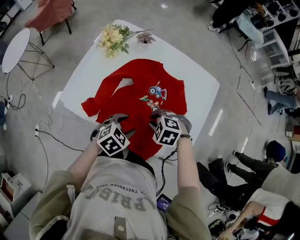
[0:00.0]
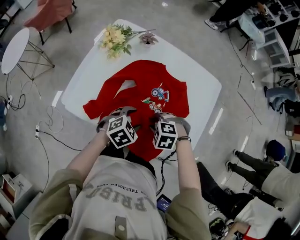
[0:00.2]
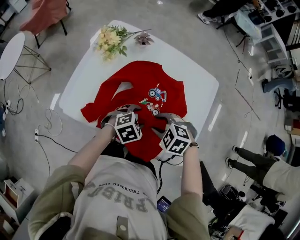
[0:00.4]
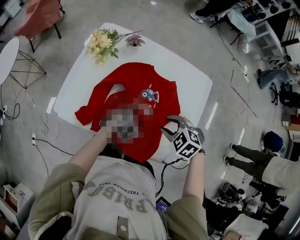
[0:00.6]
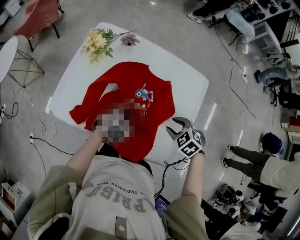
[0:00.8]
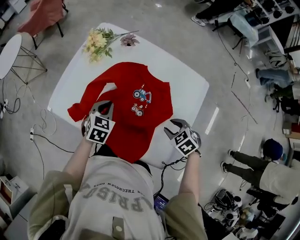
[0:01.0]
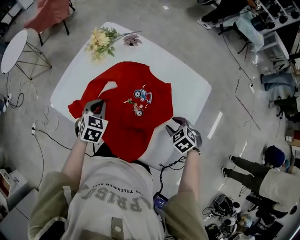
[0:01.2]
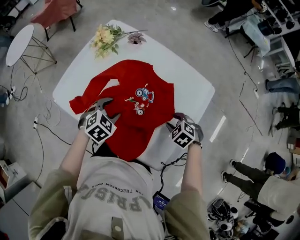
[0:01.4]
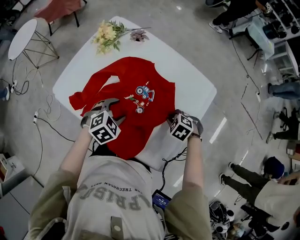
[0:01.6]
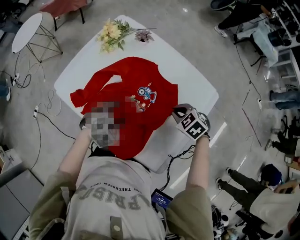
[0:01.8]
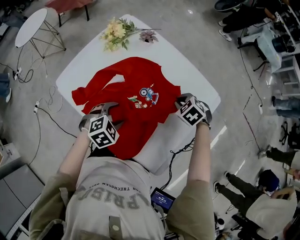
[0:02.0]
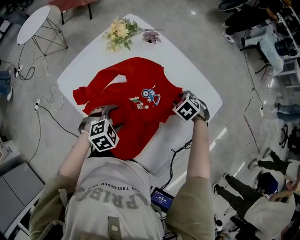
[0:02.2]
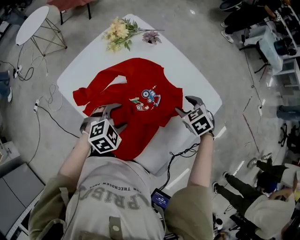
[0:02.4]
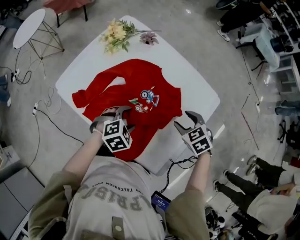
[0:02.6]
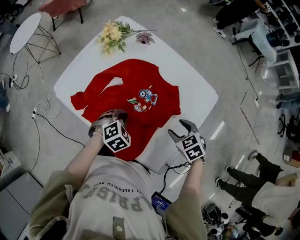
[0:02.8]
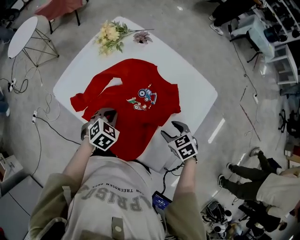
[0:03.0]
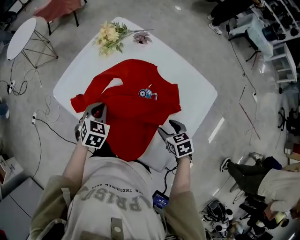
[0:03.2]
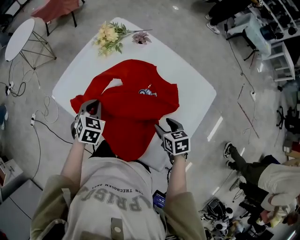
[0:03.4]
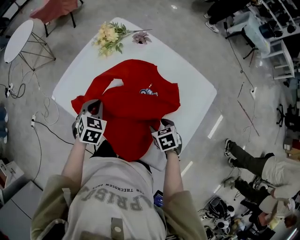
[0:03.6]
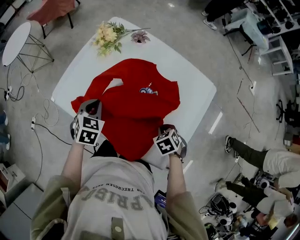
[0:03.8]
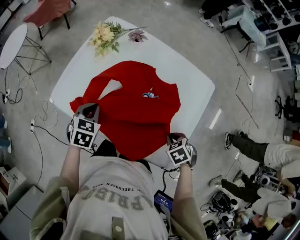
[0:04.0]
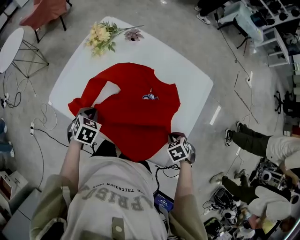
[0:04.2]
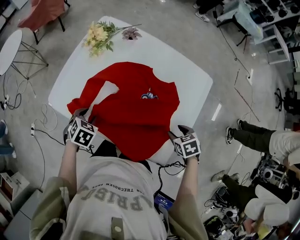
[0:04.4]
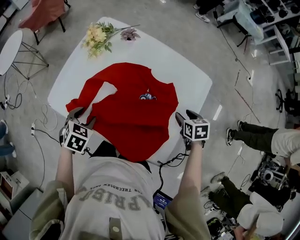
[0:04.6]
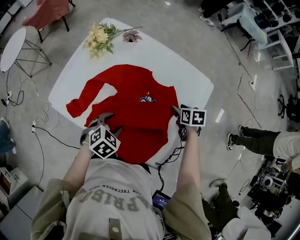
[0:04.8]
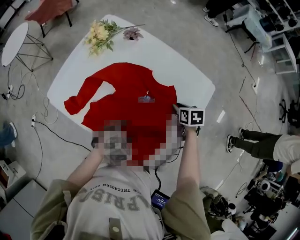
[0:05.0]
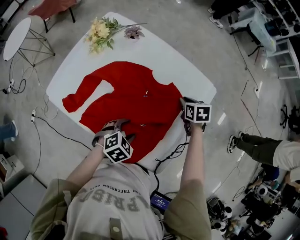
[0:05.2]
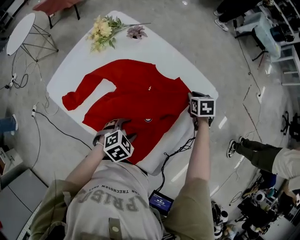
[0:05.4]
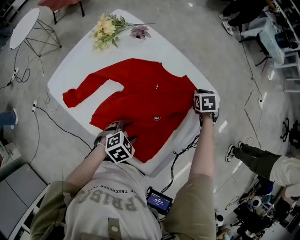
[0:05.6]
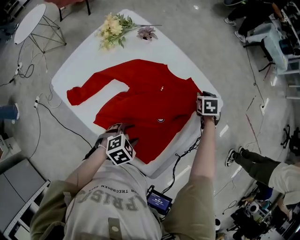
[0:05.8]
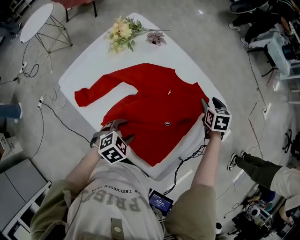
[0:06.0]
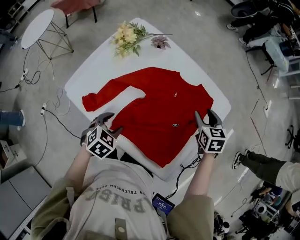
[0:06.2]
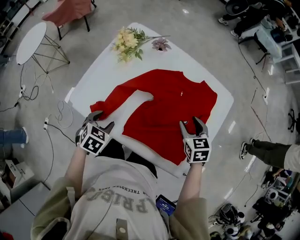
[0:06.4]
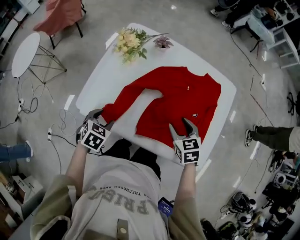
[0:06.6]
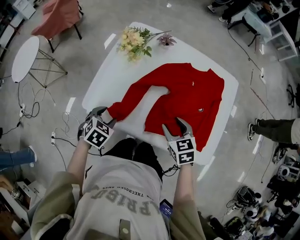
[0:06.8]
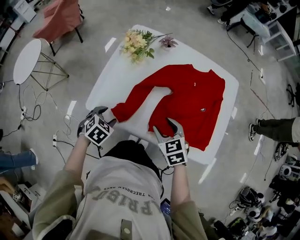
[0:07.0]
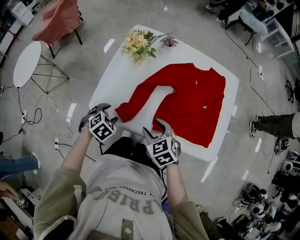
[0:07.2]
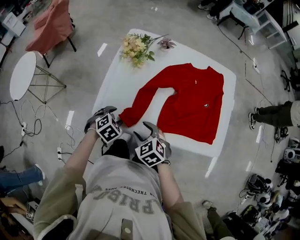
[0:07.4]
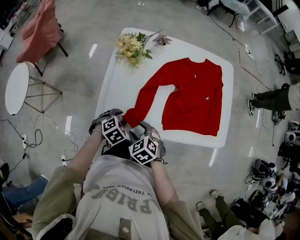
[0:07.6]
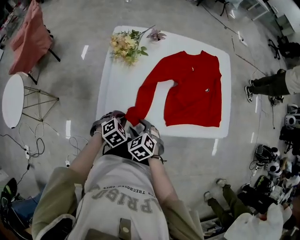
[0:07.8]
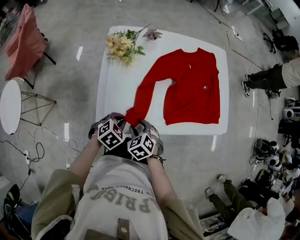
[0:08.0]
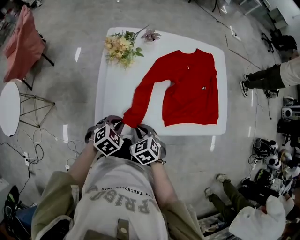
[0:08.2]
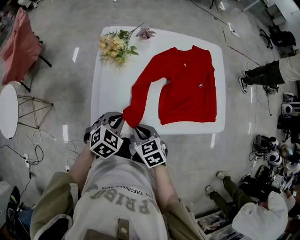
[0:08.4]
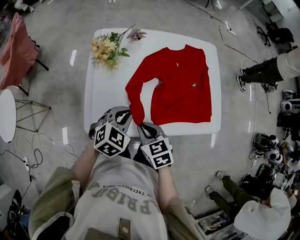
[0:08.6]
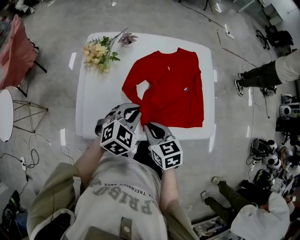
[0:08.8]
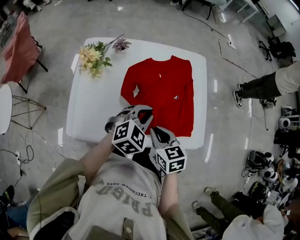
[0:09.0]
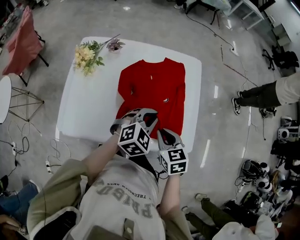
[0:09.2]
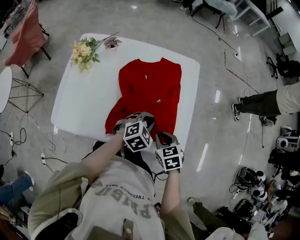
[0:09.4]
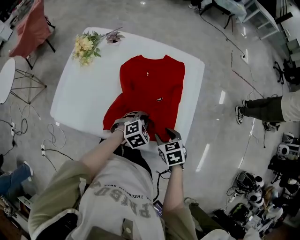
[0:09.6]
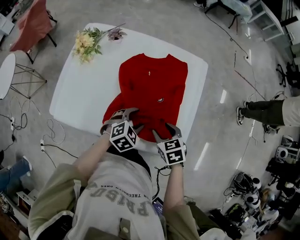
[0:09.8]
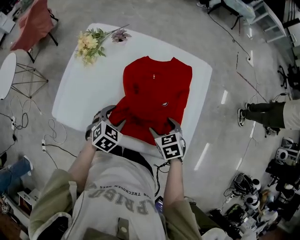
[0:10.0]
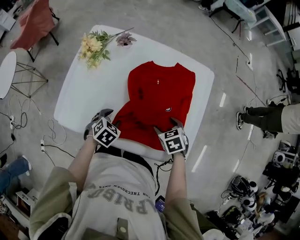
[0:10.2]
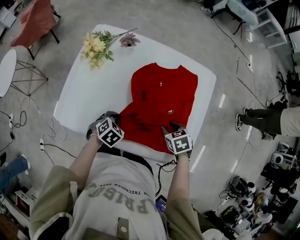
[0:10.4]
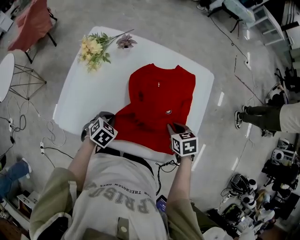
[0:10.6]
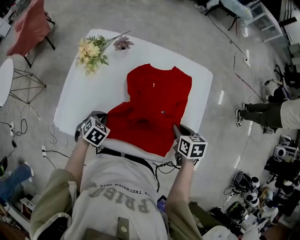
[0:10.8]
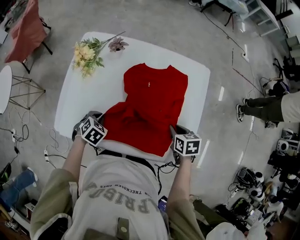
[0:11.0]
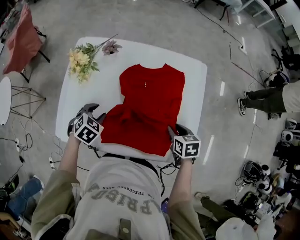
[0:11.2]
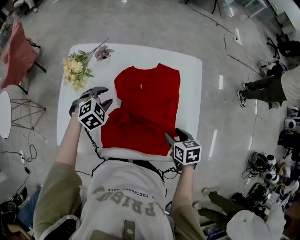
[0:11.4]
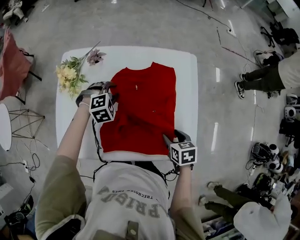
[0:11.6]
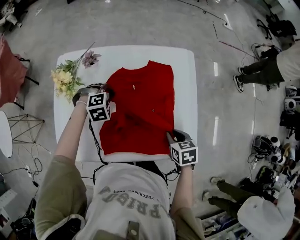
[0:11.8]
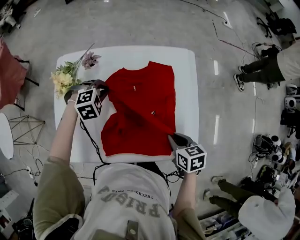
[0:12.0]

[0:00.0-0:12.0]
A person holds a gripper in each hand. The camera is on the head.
0:00.0 to 0:01.6: The right gripper ends up approximately 20 cm from where it was. The left gripper closes, then opens again.
0:01.6 to 0:03.0: The right gripper goes up and down, roughly 10 cm each way, reversing 3 times, rotates about 30 degrees, and opens up, while the left gripper closes up.
0:03.0 to 0:04.4: The right gripper ends up about 5 cm from where it was, turns by about 20 degrees, and closes, then reopens. Meanwhile the left gripper changes place by roughly 10 cm, and opens up.
0:04.4 to 0:06.0: The right gripper changes place by about 30 cm, rotates roughly 20 degrees, and closes, then reopens; the left gripper ends up about 20 cm from where it was.
0:06.0 to 0:07.6: The left gripper moves to the left, approximately 35 cm, and swivels approximately 40 degrees. The right gripper travels to the left and backward by some 60 cm.
0:07.6 to 0:09.0: The right gripper shifts roughly 25 cm to the right and upward, changes its angle by some 40 degrees, and closes. The left gripper shifts about 35 cm to the right, upward and forward, angles its fingers upward, by approximately 30 degrees, and closes its fingers.
0:09.0 to 0:10.4: The left gripper shifts some 20 cm downward and to the left, points its fingers roughly 30 degrees further downward, and opens, then closes again; the right gripper shifts roughly 20 cm to the right, downward and forward, rotates some 40 degrees, and opens.
0:10.4 to 0:12.0: The right gripper travels upward by roughly 5 cm, and rotates some 40 degrees. The left gripper goes roughly 20 cm forward, rolls clockwise, seen from behind, by about 50 degrees, and opens, then closes again.

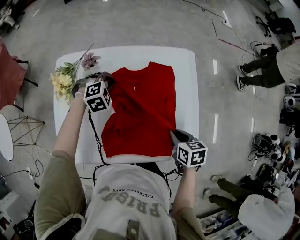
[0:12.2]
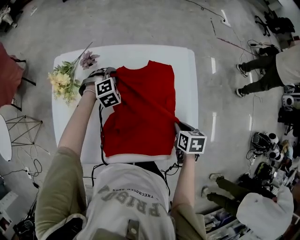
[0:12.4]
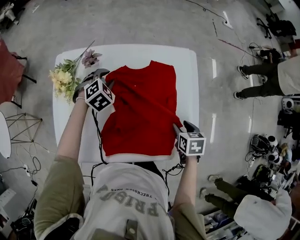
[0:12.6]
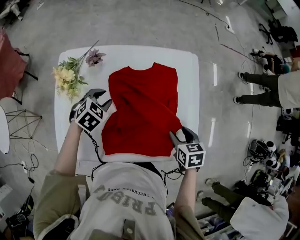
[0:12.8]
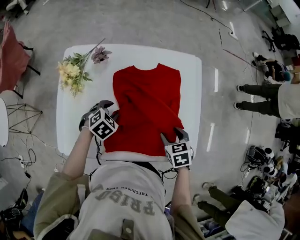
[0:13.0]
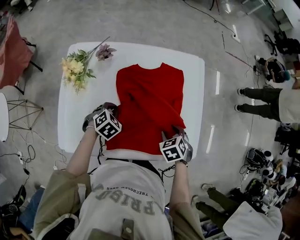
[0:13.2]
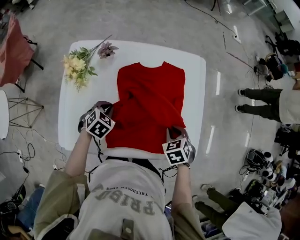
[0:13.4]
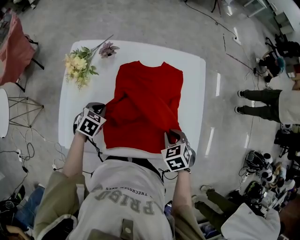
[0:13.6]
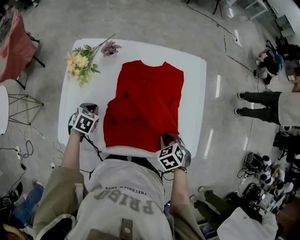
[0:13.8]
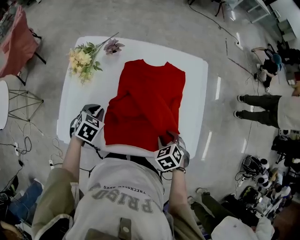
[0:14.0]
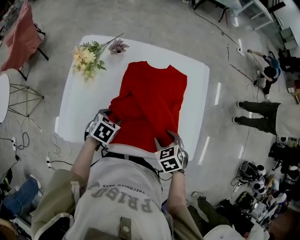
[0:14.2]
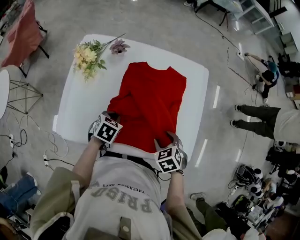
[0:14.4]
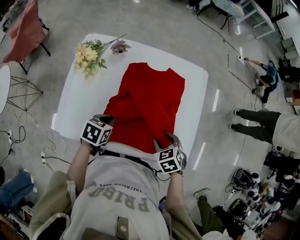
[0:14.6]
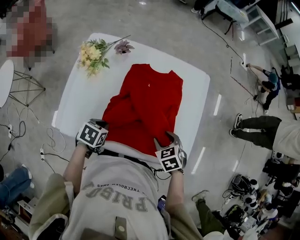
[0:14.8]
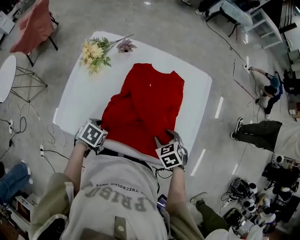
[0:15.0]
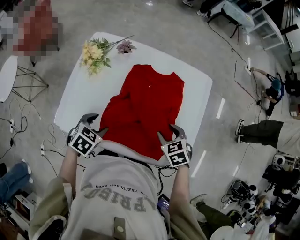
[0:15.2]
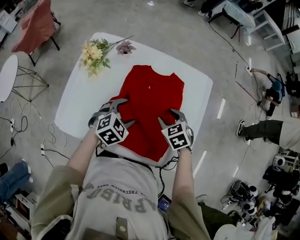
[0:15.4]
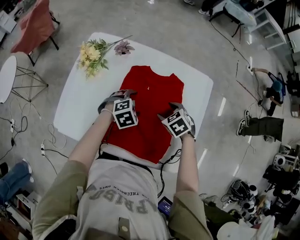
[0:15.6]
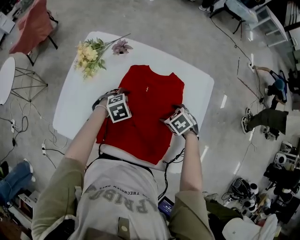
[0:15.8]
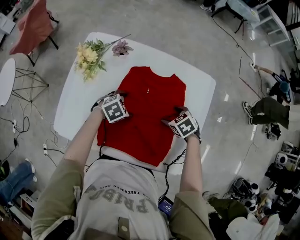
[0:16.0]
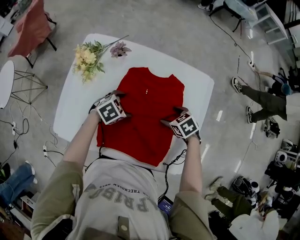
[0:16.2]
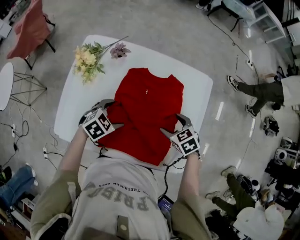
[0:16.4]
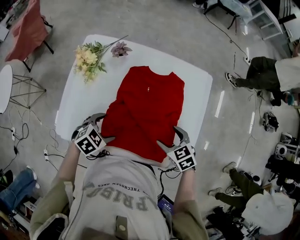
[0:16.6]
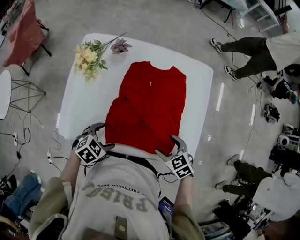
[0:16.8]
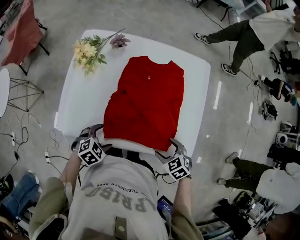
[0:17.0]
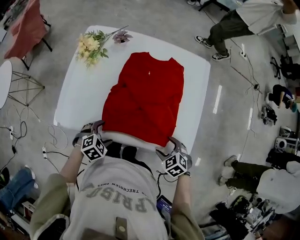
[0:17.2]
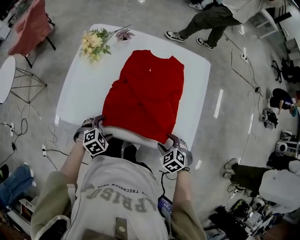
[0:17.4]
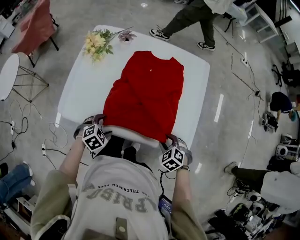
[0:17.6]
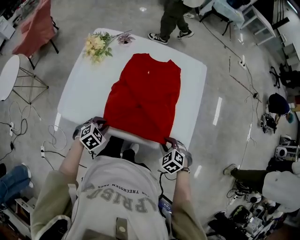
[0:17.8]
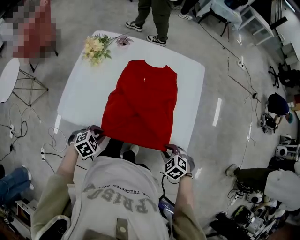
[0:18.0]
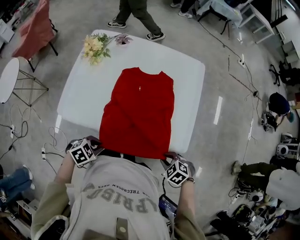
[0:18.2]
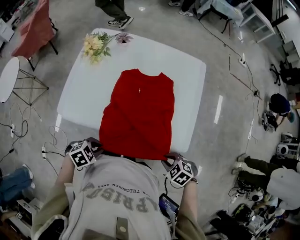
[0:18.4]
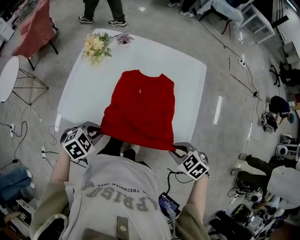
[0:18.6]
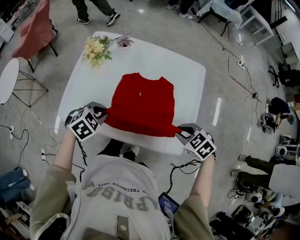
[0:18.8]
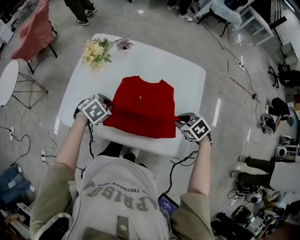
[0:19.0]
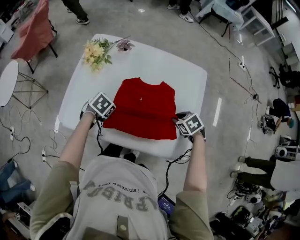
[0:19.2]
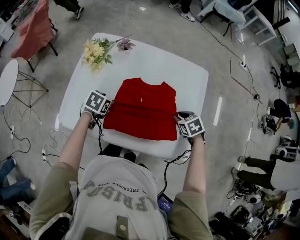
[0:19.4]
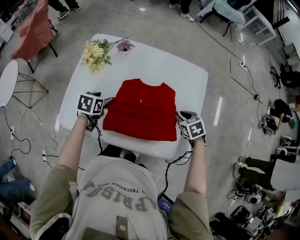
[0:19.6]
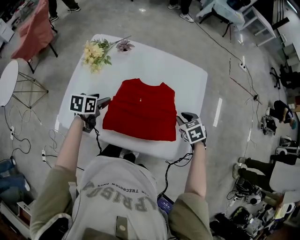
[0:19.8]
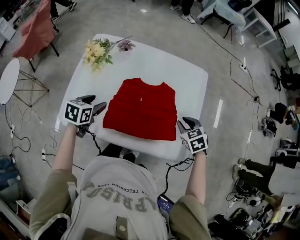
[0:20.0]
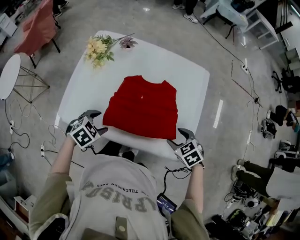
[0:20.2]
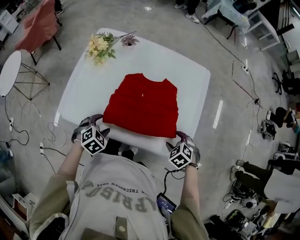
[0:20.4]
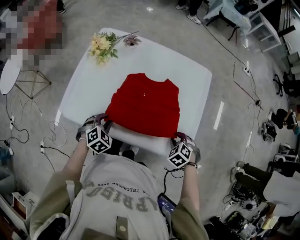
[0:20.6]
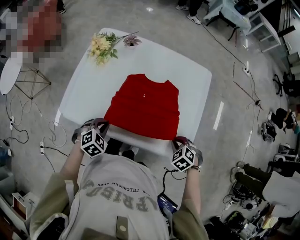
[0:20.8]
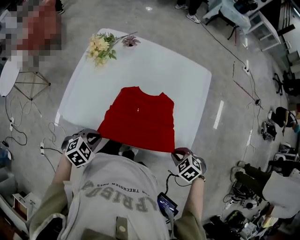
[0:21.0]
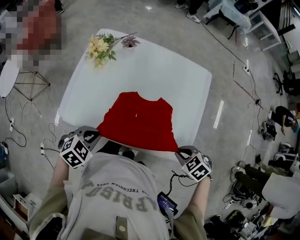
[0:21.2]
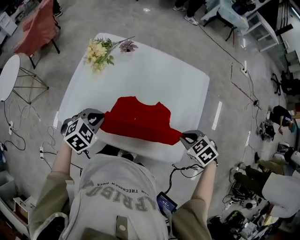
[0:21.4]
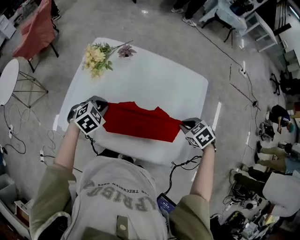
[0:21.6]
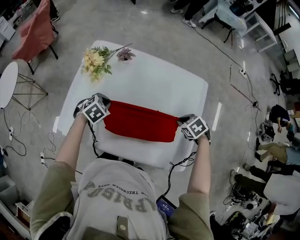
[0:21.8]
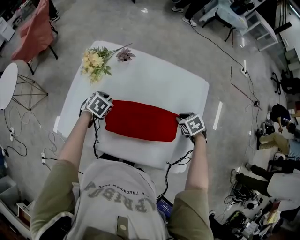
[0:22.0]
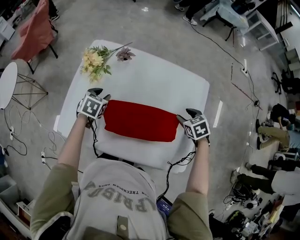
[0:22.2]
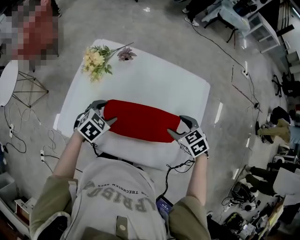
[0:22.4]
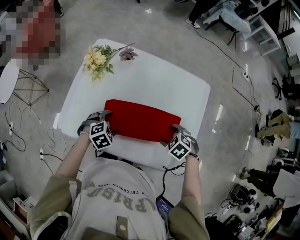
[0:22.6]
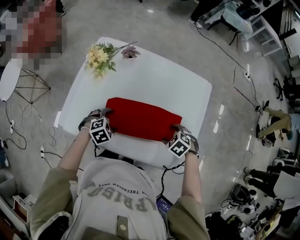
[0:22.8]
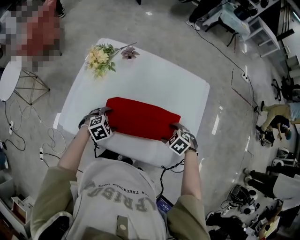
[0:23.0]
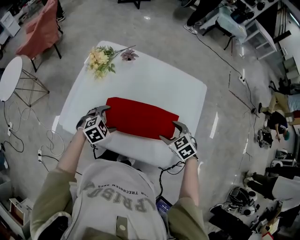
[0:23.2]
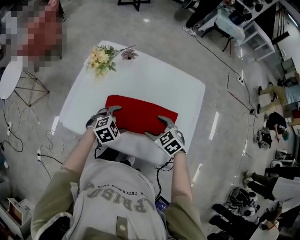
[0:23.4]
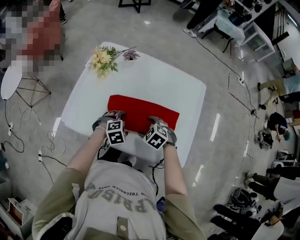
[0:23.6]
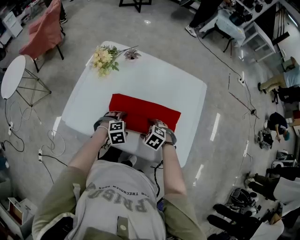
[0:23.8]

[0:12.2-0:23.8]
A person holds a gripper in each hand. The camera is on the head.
0:12.2 to 0:13.6: The right gripper shifts by approximately 5 cm, swivels some 40 degrees, and opens, then closes once more; the left gripper travels backward and to the left by about 20 cm, rolls counterclockwise, seen from behind, by some 50 degrees, and opens, then closes again.
0:13.6 to 0:15.0: The left gripper goes roughly 15 cm backward, and swivels some 20 degrees, while the right gripper opens its fingers.
0:15.0 to 0:16.6: The left gripper goes up and down, roughly 10 cm each way, reversing 2 times, changes its angle by some 30 degrees, and opens. Meanwhile the right gripper reaches some 5 cm downward, then returns, and opens up.
0:16.6 to 0:18.0: The grippers both shift backward by approximately 20 cm. The right gripper swivels some 30 degrees, and closes. The left gripper closes up.
0:18.0 to 0:19.4: The left gripper reaches about 10 cm upward, then returns, turns by about 40 degrees, and opens up. Meanwhile the right gripper travels upward and back again, about 10 cm each way, and turns by approximately 30 degrees.
0:19.4 to 0:21.0: Both grippers travel together backward, some 20 cm. The right gripper rotates some 30 degrees, and opens, then closes once more. The left gripper changes its angle by about 30 degrees, and closes its fingers.
0:21.0 to 0:22.4: The grippers both shift forward by approximately 20 cm. The right gripper opens up. Meanwhile the left gripper opens its fingers.
0:22.4 to 0:23.8: The left gripper goes approximately 15 cm backward, downward and to the right, and turns by about 30 degrees. Meanwhile the right gripper shifts some 20 cm to the left, downward and backward, and rotates approximately 30 degrees.
